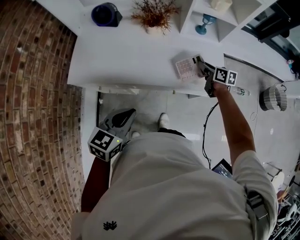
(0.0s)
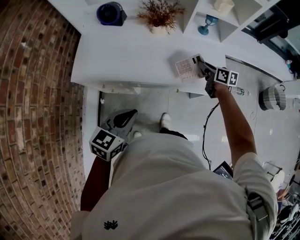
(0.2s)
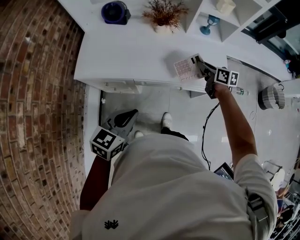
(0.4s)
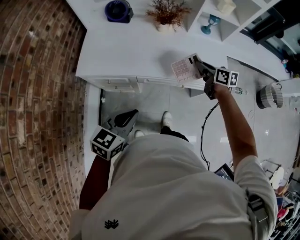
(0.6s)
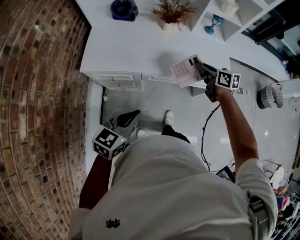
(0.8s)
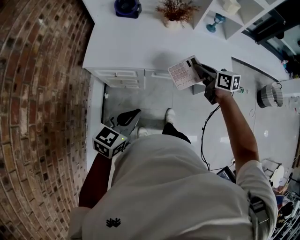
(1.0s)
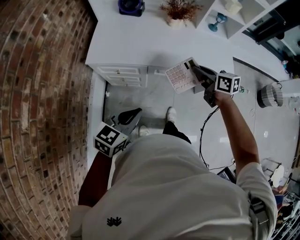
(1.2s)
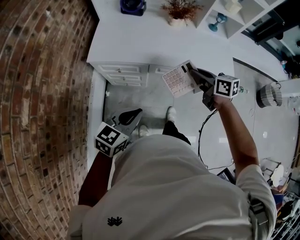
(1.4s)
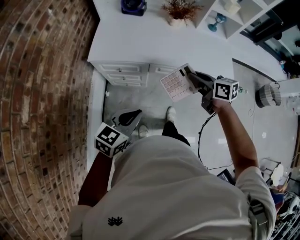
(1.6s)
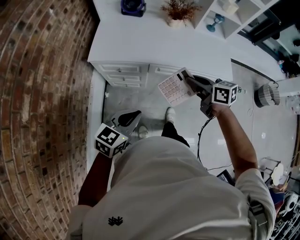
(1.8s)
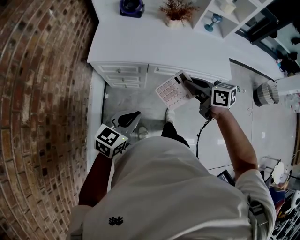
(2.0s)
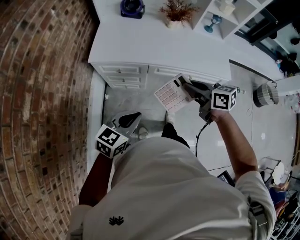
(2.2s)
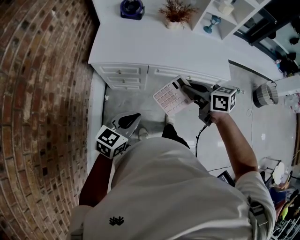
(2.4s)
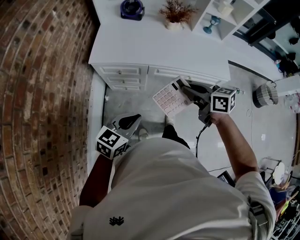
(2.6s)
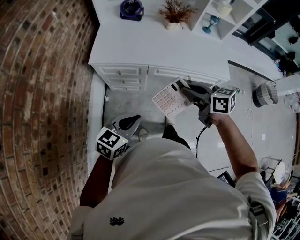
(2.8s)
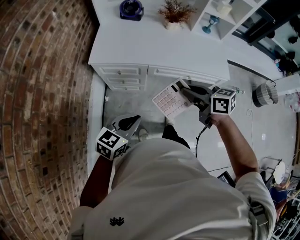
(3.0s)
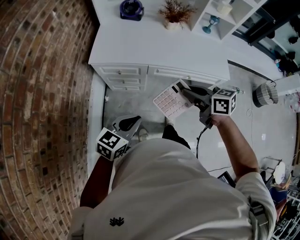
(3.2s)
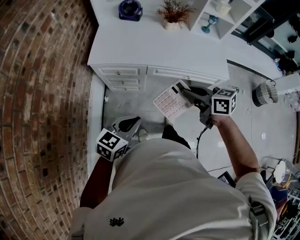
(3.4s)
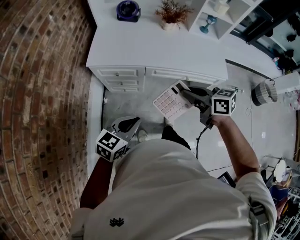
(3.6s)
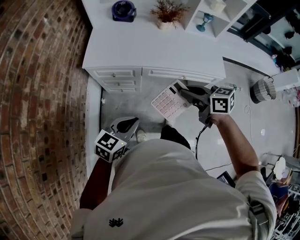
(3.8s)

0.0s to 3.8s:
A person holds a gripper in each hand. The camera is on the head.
0.0s to 1.2s: The left gripper heads backward and to the left, covering roughly 20 cm. Meanwhile the right gripper heads to the left, backward and upward, covering roughly 30 cm.
1.2s to 2.6s: The right gripper heads backward and to the left, covering some 15 cm, while the left gripper goes approximately 5 cm backward.
2.6s to 3.8s: There are only small adjustments of the grippers.

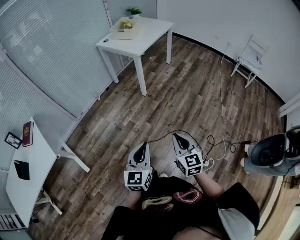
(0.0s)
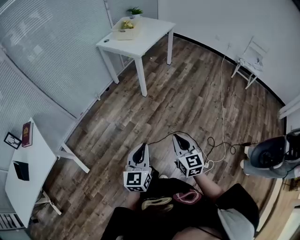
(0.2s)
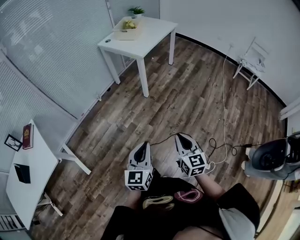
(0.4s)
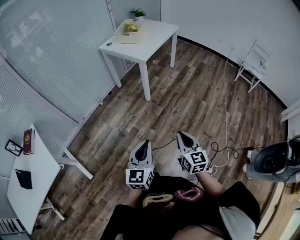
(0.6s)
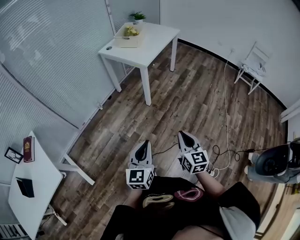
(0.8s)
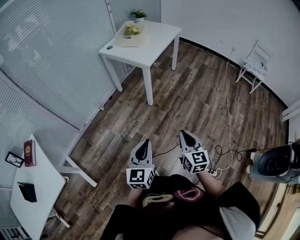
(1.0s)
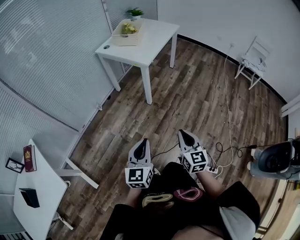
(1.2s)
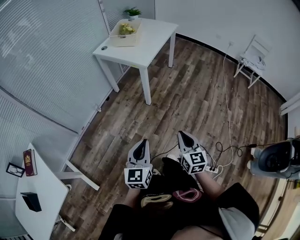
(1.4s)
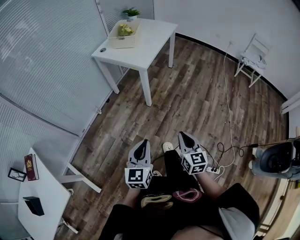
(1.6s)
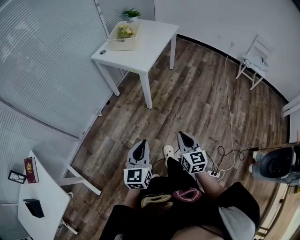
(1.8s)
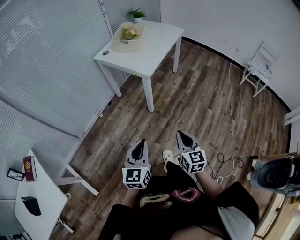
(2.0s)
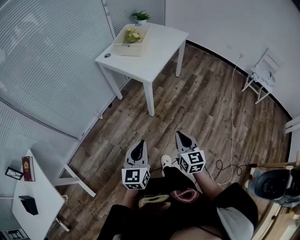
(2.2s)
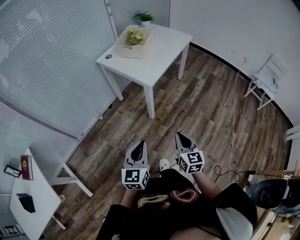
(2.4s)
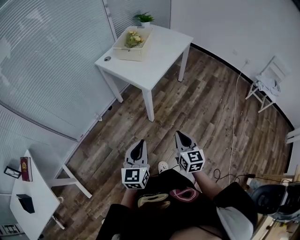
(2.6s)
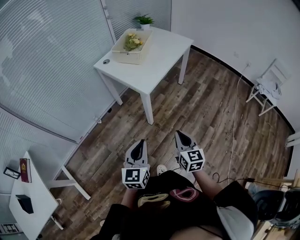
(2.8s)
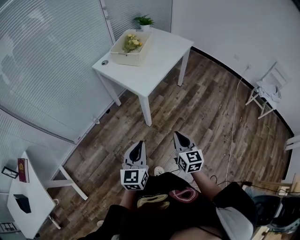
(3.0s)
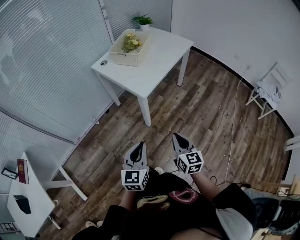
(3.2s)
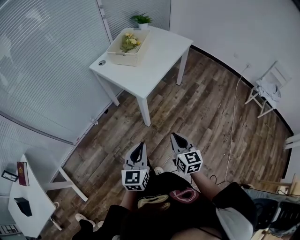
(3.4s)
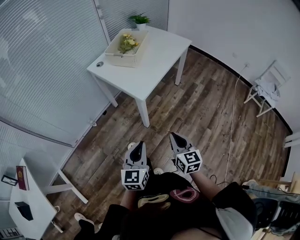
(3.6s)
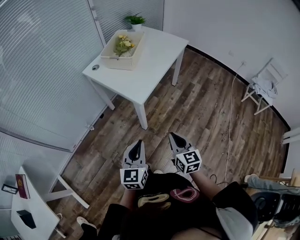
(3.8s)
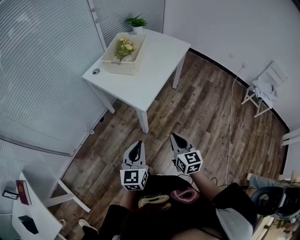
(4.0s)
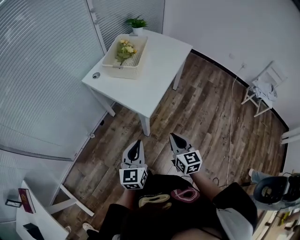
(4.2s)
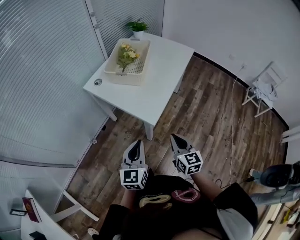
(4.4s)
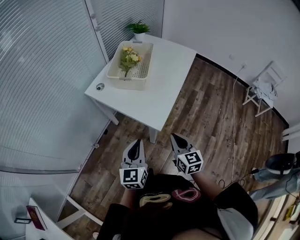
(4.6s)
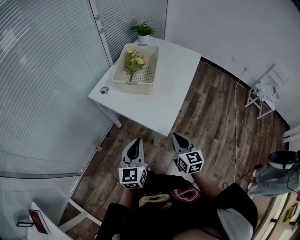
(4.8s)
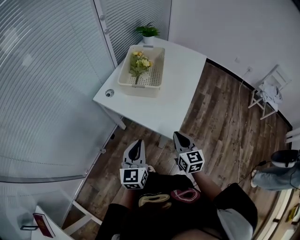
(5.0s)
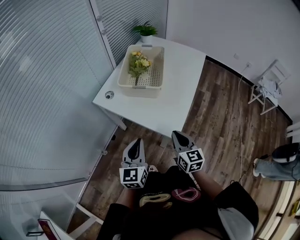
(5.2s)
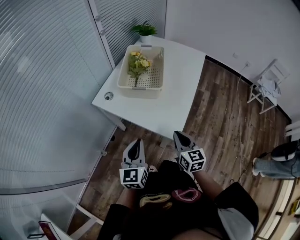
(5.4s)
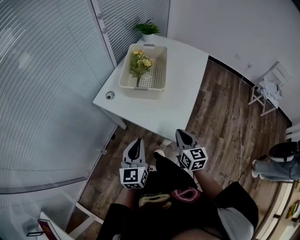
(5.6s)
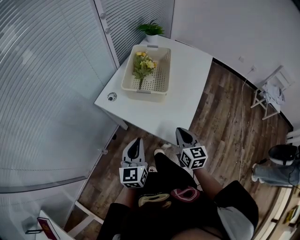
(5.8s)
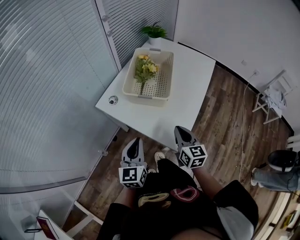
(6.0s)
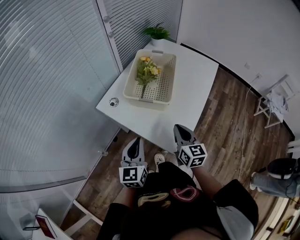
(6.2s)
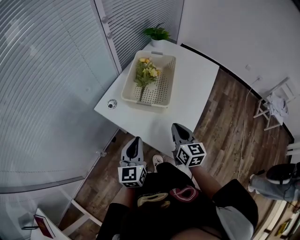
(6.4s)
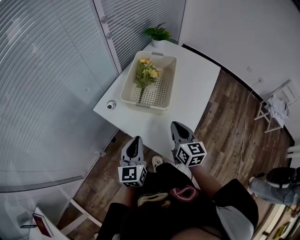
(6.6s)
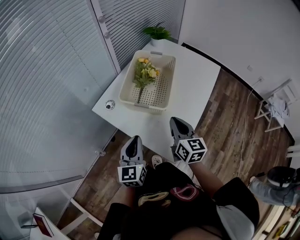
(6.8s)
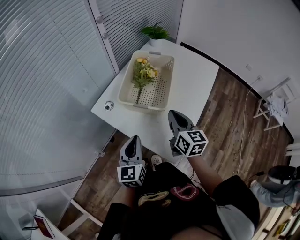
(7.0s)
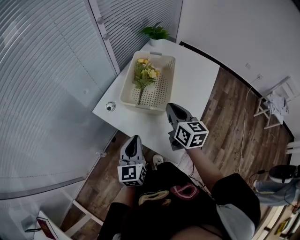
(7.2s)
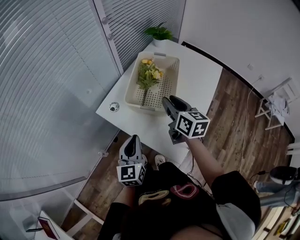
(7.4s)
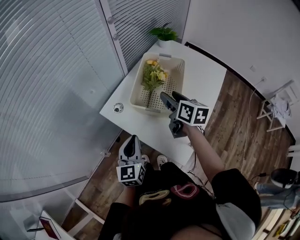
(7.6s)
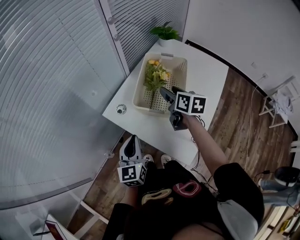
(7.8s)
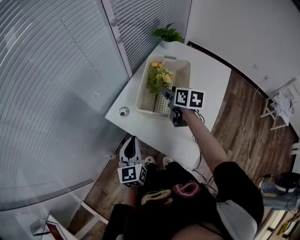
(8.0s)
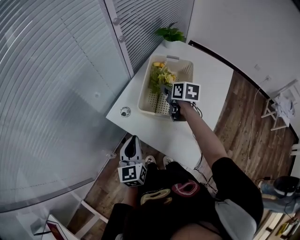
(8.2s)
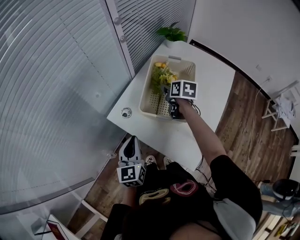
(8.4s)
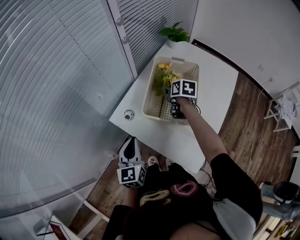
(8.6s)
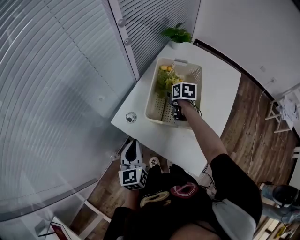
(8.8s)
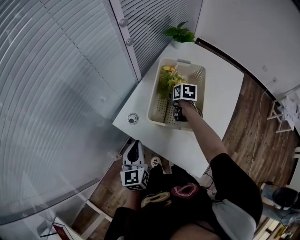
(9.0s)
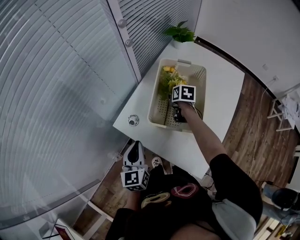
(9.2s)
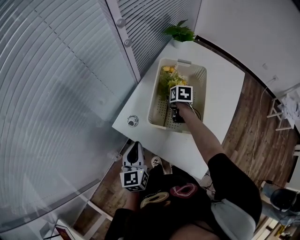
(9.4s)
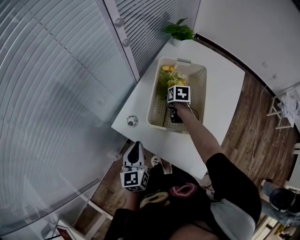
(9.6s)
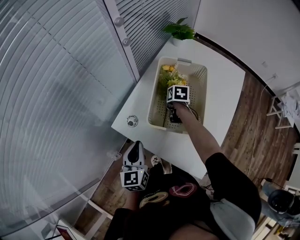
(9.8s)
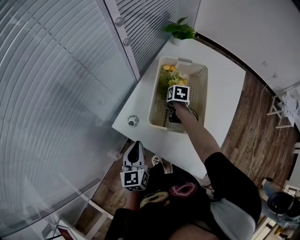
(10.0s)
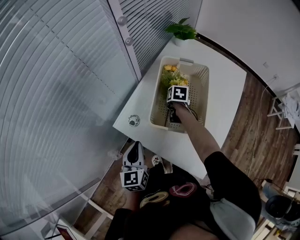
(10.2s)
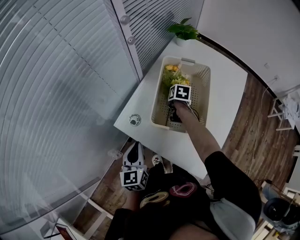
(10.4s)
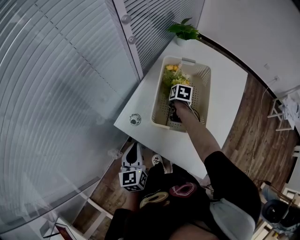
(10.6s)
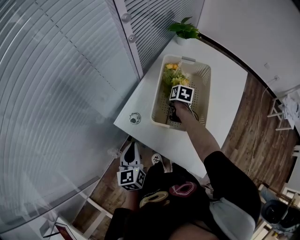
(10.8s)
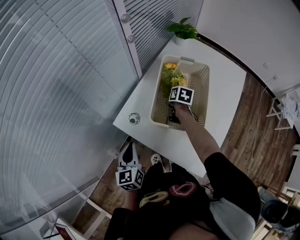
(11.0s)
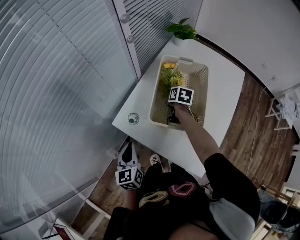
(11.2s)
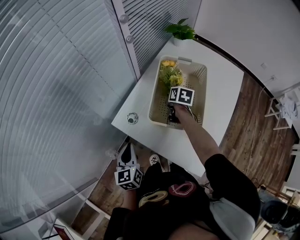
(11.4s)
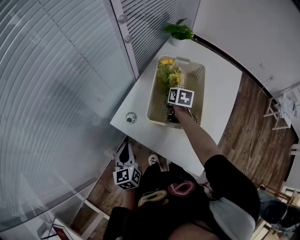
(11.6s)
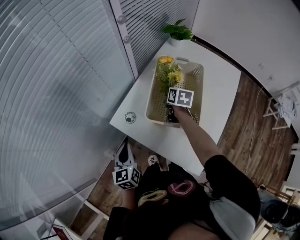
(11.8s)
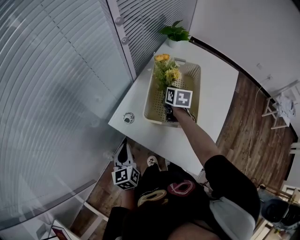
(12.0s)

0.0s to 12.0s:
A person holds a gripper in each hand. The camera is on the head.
0.0s to 1.6s: The right gripper heads forward, covering roughly 20 cm. The left gripper travels forward and to the left by about 25 cm.
1.6s to 3.0s: The grippers both shift forward by roughly 25 cm.
3.0s to 4.4s: The right gripper heads forward and to the left, covering about 20 cm, while the left gripper goes about 25 cm forward.
4.4s to 6.0s: Both grippers travel together forward and to the left, approximately 25 cm.
6.0s to 7.6s: The right gripper travels forward by roughly 20 cm, and opens its fingers. Meanwhile the left gripper heads forward, covering roughly 10 cm.
7.6s to 9.0s: The right gripper shifts about 25 cm downward and forward, and tilts its fingers about 30 degrees downward, while the left gripper shifts roughly 10 cm forward and to the left.
9.0s to 10.4s: The right gripper travels downward by approximately 5 cm, and closes its fingers.
10.4s to 12.0s: The right gripper goes approximately 10 cm upward, and swivels approximately 20 degrees.

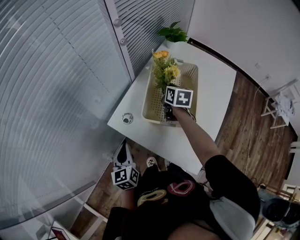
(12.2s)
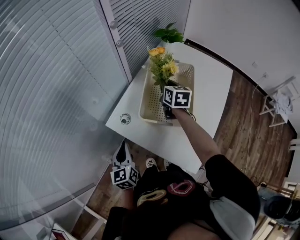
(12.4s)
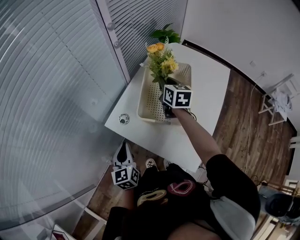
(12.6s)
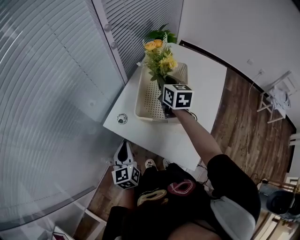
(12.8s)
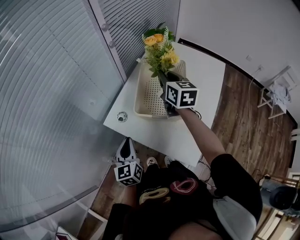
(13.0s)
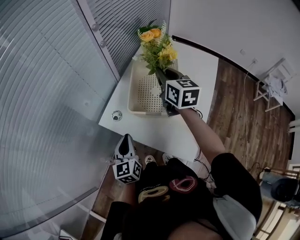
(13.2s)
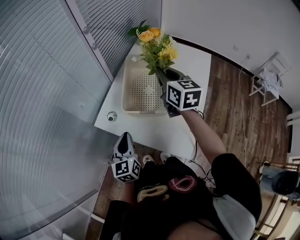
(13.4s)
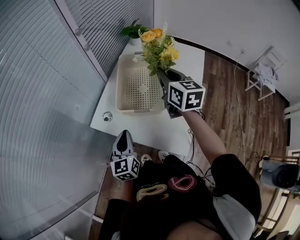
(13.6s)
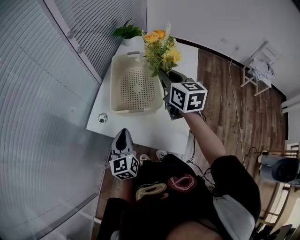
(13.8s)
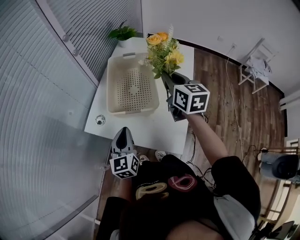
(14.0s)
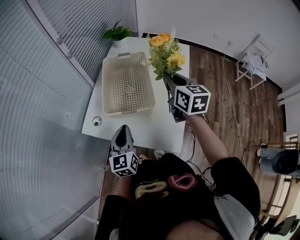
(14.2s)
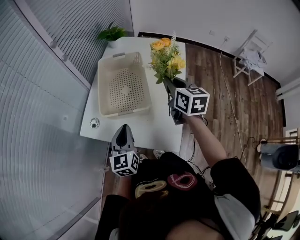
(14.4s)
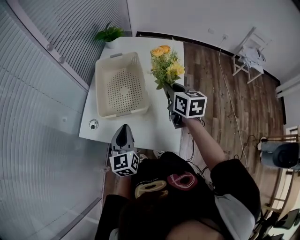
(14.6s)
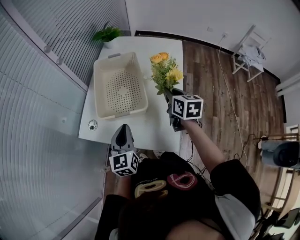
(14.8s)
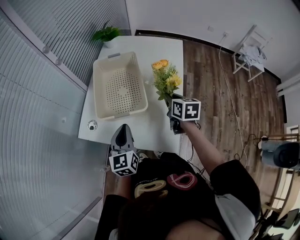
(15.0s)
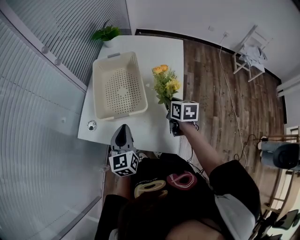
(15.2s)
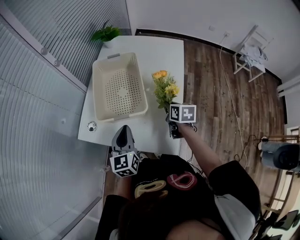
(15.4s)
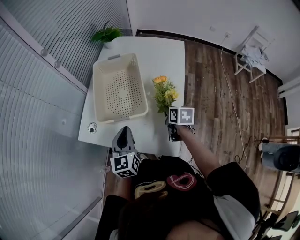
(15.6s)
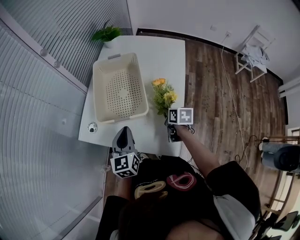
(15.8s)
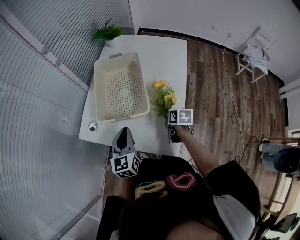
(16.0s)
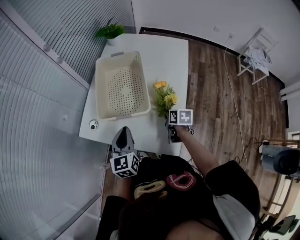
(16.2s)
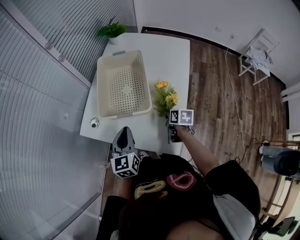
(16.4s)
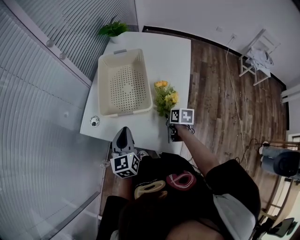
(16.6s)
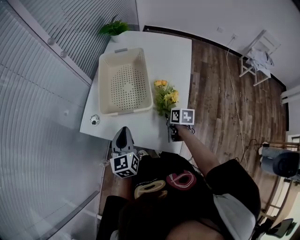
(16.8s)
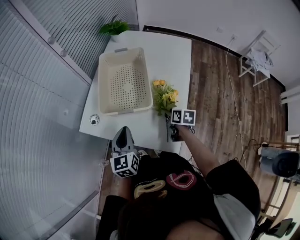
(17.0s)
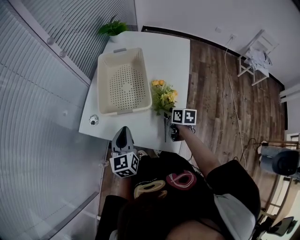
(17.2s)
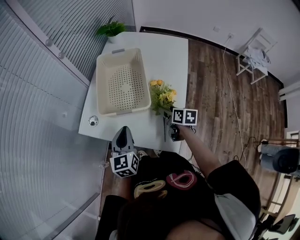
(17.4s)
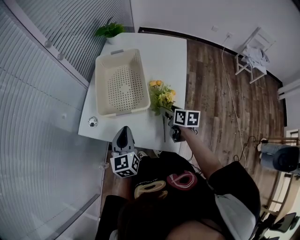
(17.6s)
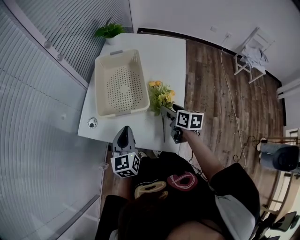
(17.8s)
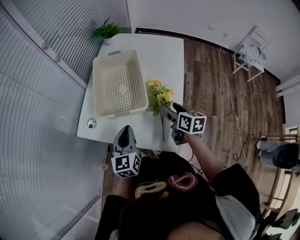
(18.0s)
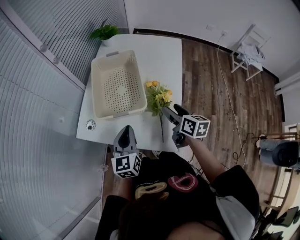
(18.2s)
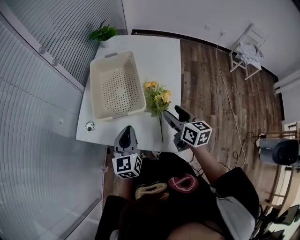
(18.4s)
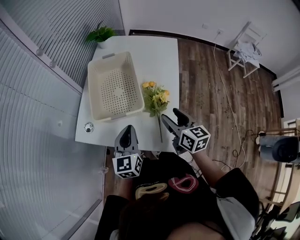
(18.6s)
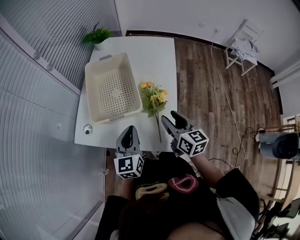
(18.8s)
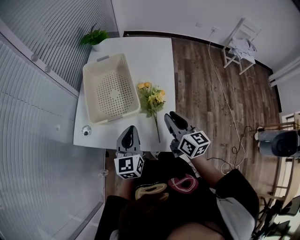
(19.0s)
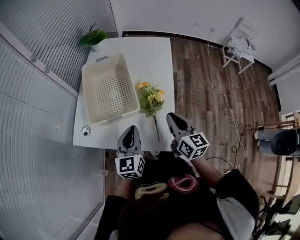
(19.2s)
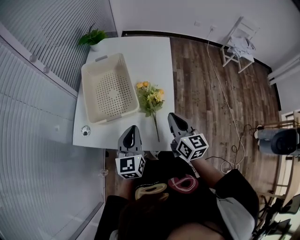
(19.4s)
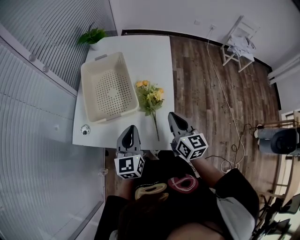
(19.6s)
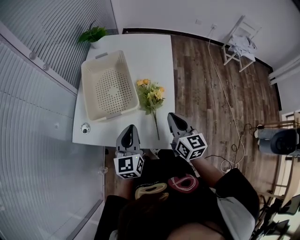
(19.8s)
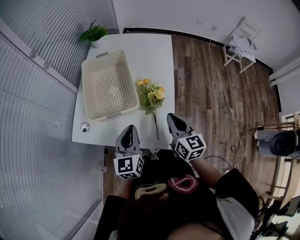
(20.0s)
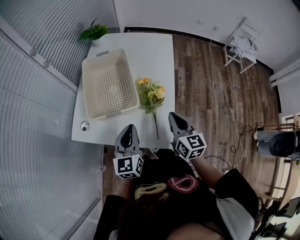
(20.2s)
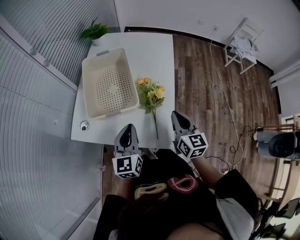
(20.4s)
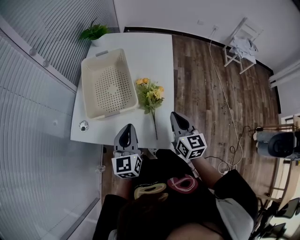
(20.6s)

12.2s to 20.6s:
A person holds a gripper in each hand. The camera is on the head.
12.2s to 13.6s: The right gripper shifts approximately 20 cm upward, backward and to the right, and rotates some 20 degrees, while the left gripper goes approximately 10 cm to the right.
13.6s to 15.0s: The left gripper moves to the right, some 10 cm. The right gripper travels downward, to the right and backward by roughly 20 cm, and rotates approximately 30 degrees.
15.0s to 16.4s: The right gripper travels downward by approximately 15 cm.
16.4s to 17.8s: The right gripper shifts about 10 cm upward, and opens its fingers.
17.8s to 19.2s: The right gripper heads upward and backward, covering about 10 cm, rotates some 30 degrees, and closes up. Meanwhile the left gripper heads to the right, covering about 5 cm.
19.2s to 20.6s: The grippers stay close to where they were, moving slightly.
